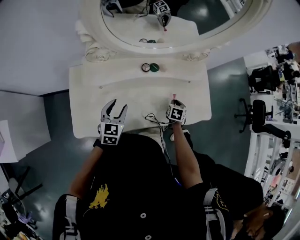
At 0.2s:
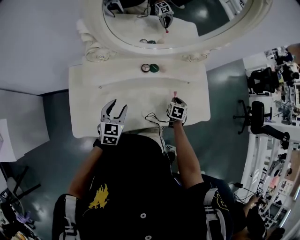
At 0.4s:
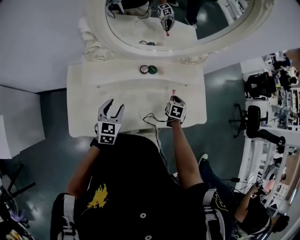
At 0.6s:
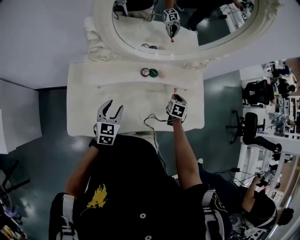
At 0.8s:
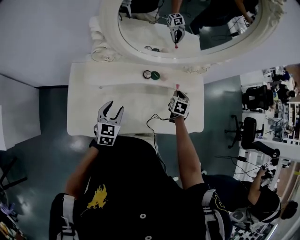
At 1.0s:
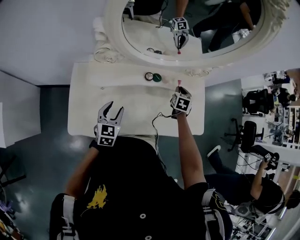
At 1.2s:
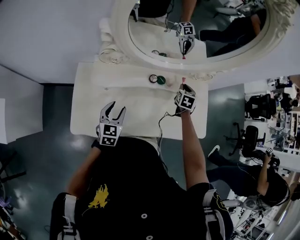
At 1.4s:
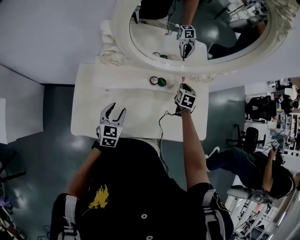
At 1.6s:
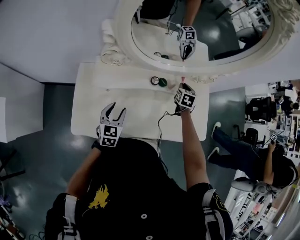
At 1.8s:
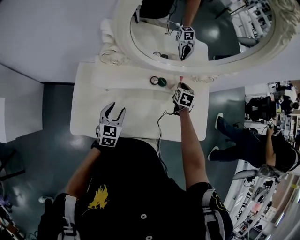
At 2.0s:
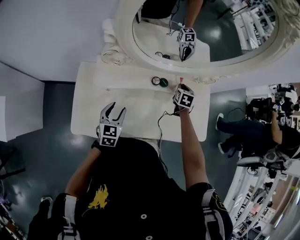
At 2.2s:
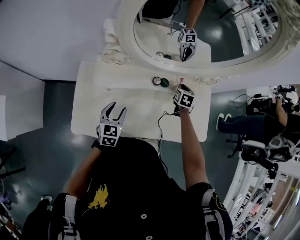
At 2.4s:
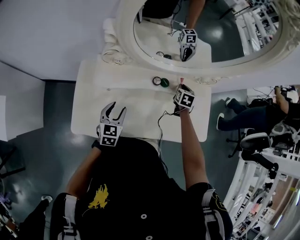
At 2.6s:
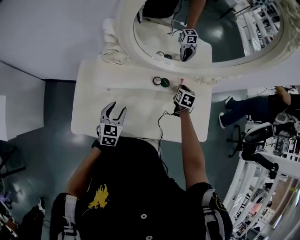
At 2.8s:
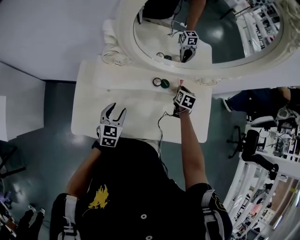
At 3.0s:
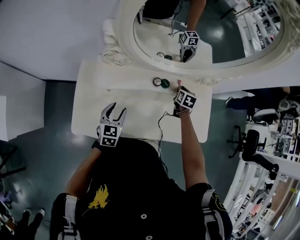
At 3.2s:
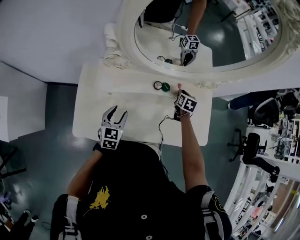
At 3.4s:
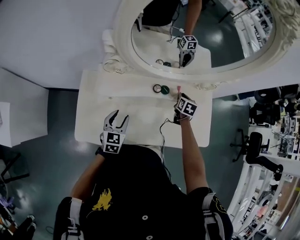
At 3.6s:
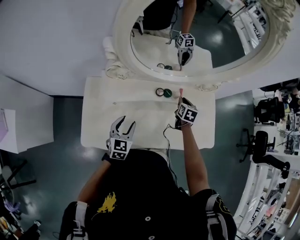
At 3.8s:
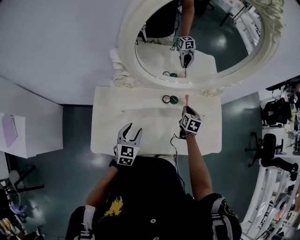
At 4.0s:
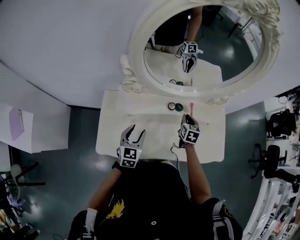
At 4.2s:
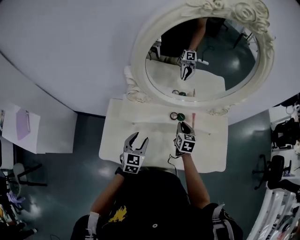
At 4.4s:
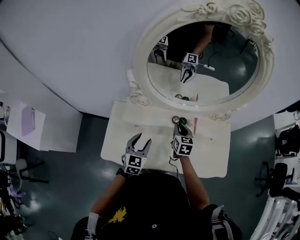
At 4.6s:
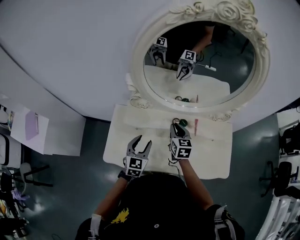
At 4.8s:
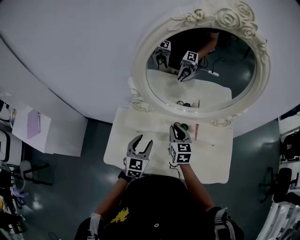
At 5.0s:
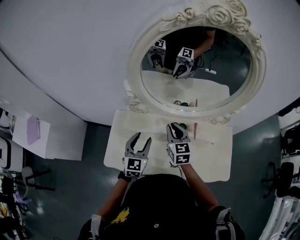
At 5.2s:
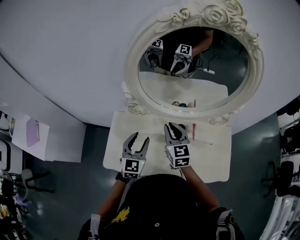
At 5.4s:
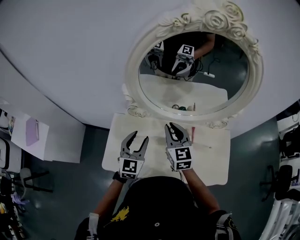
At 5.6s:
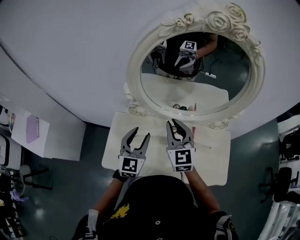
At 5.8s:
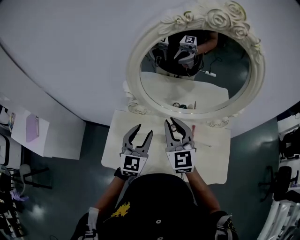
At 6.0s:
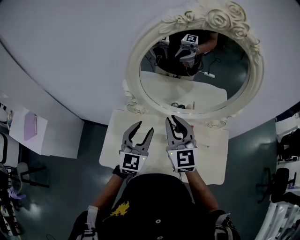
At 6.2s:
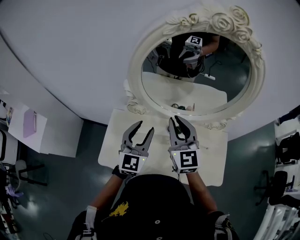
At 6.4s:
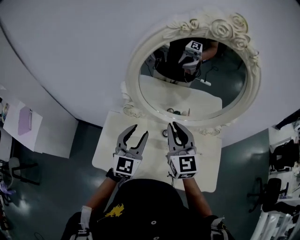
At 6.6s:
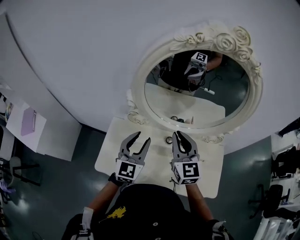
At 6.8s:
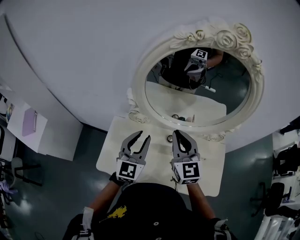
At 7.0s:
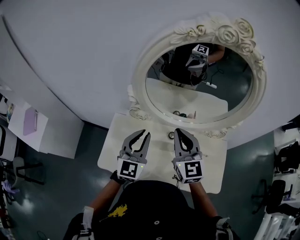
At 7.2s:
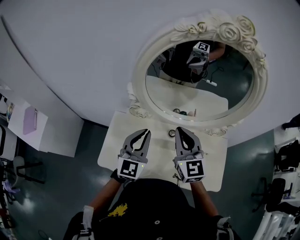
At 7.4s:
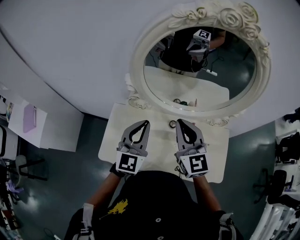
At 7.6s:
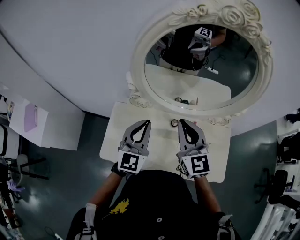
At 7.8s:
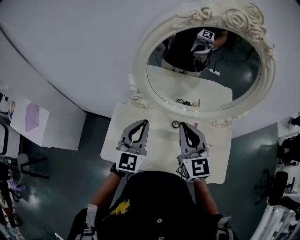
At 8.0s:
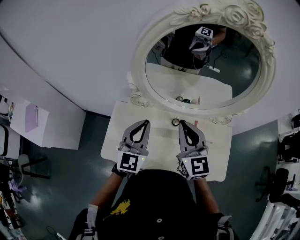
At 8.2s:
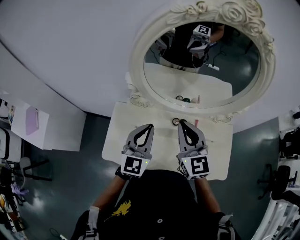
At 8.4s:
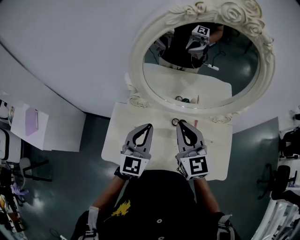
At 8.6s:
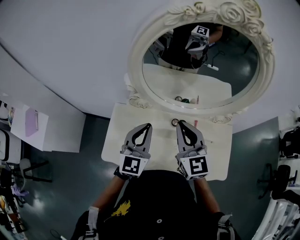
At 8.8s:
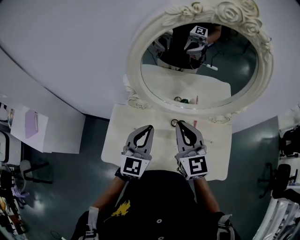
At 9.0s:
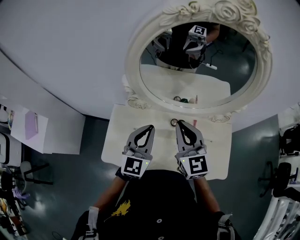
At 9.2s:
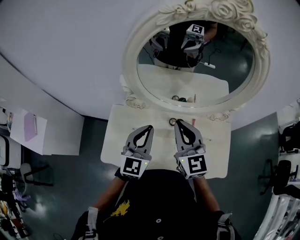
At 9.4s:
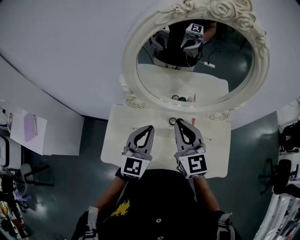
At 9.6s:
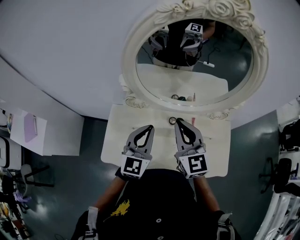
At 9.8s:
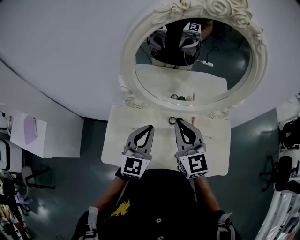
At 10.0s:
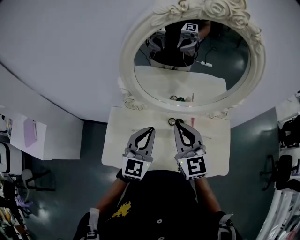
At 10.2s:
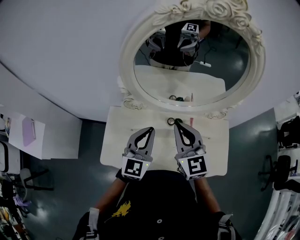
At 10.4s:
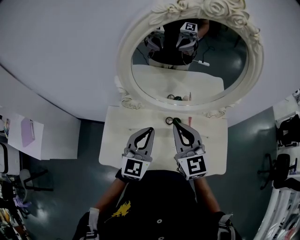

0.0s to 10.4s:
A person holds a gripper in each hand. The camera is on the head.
0.0s to 1.4s: The right gripper is displaced forward, upward and to the left by about 25 cm.
1.4s to 3.0s: The grippers make only small movements.
3.0s to 4.4s: The right gripper shifts some 20 cm to the left, upward and backward, and turns by about 30 degrees; the left gripper travels upward by approximately 10 cm.
4.4s to 6.0s: The two grippers go roughly 20 cm upward. The right gripper changes its angle by approximately 40 degrees.
6.0s to 7.4s: The left gripper closes up.
7.4s to 10.4s: There are only small adjustments of the grippers.

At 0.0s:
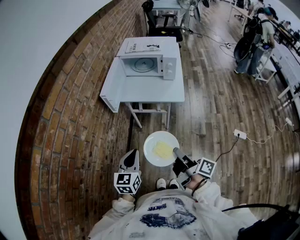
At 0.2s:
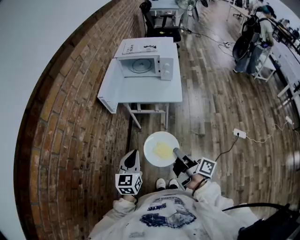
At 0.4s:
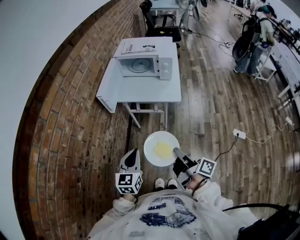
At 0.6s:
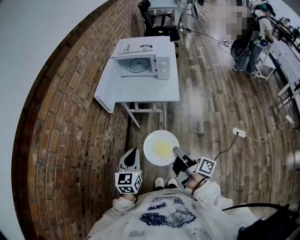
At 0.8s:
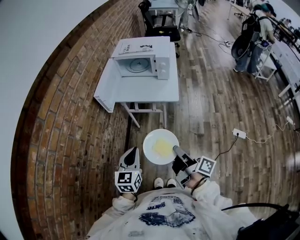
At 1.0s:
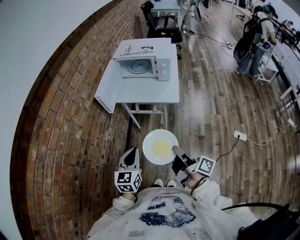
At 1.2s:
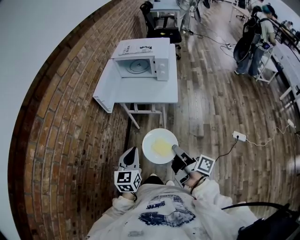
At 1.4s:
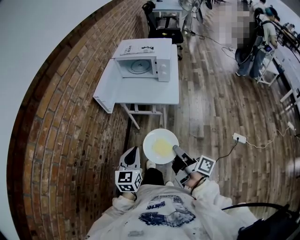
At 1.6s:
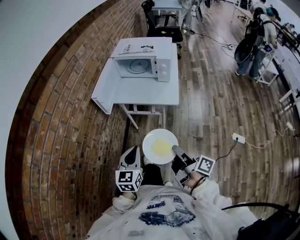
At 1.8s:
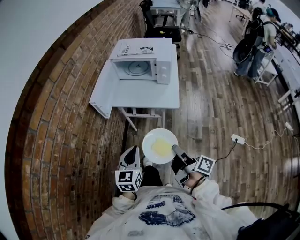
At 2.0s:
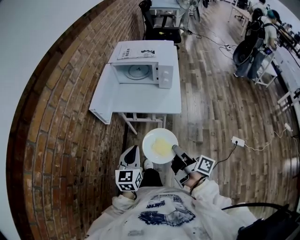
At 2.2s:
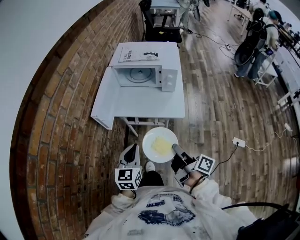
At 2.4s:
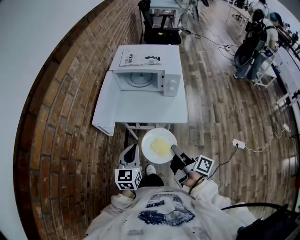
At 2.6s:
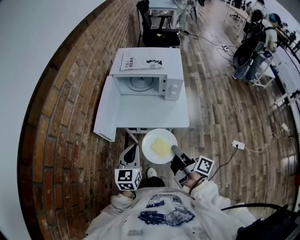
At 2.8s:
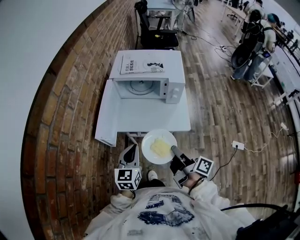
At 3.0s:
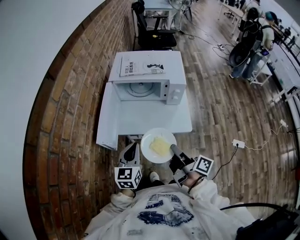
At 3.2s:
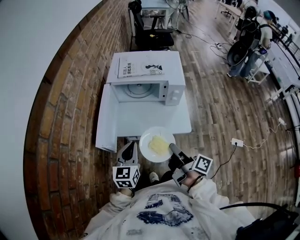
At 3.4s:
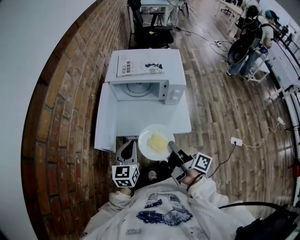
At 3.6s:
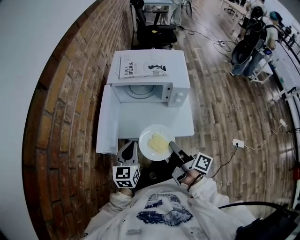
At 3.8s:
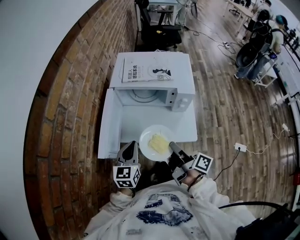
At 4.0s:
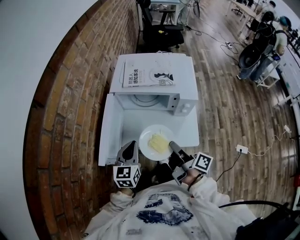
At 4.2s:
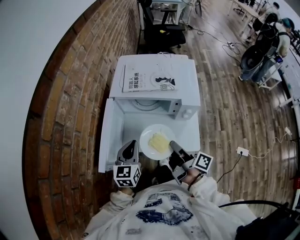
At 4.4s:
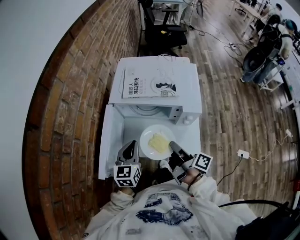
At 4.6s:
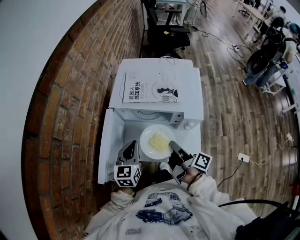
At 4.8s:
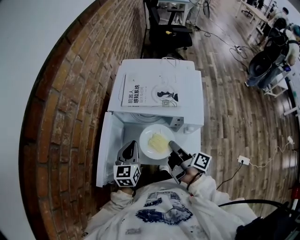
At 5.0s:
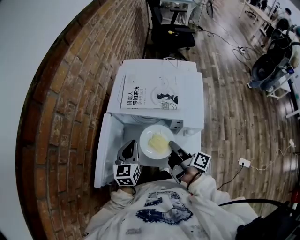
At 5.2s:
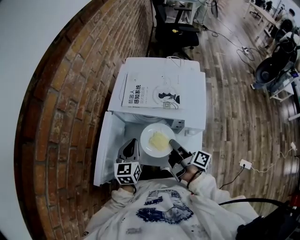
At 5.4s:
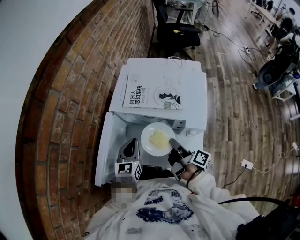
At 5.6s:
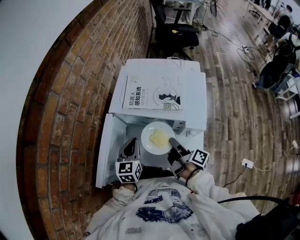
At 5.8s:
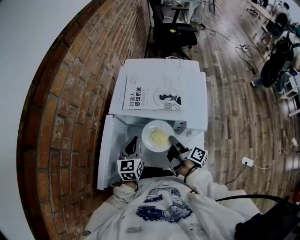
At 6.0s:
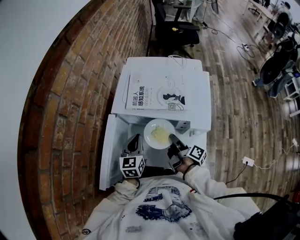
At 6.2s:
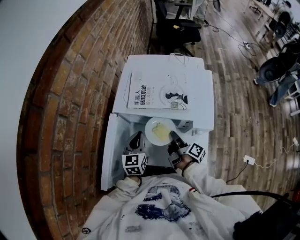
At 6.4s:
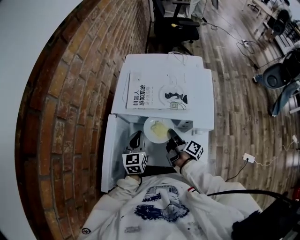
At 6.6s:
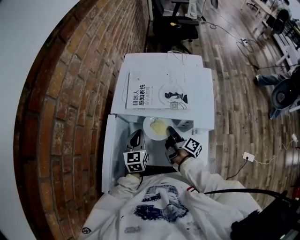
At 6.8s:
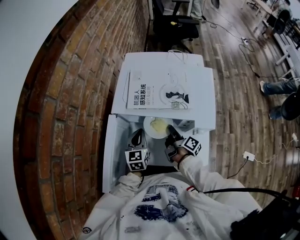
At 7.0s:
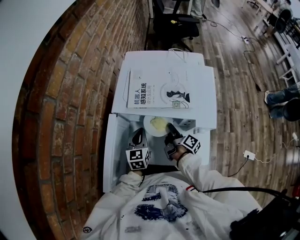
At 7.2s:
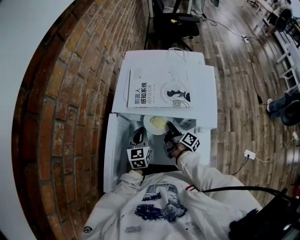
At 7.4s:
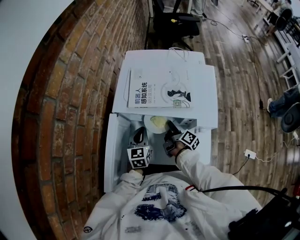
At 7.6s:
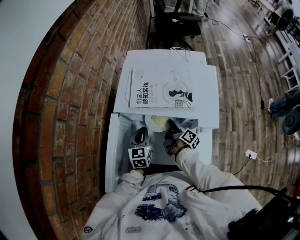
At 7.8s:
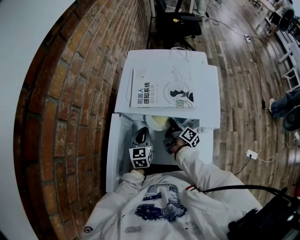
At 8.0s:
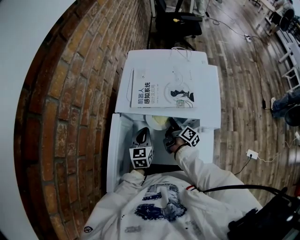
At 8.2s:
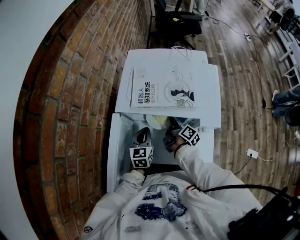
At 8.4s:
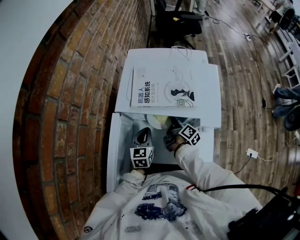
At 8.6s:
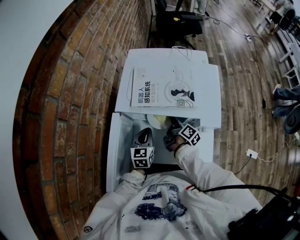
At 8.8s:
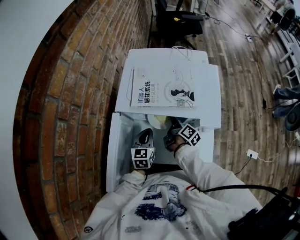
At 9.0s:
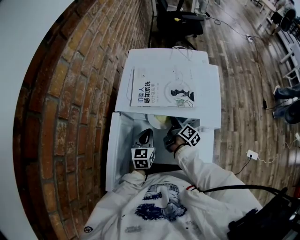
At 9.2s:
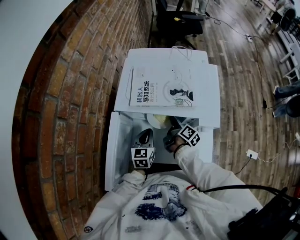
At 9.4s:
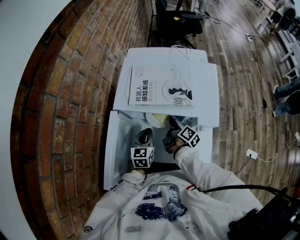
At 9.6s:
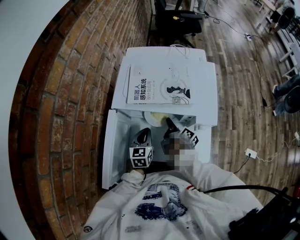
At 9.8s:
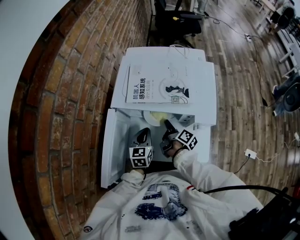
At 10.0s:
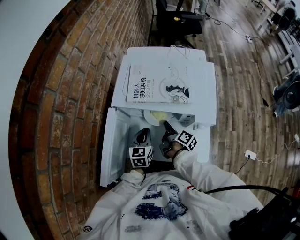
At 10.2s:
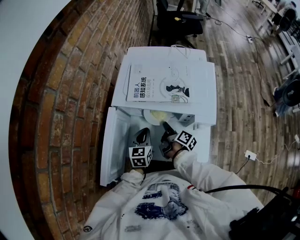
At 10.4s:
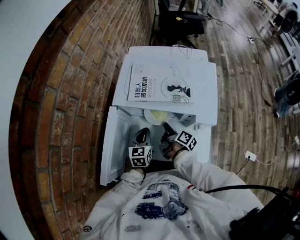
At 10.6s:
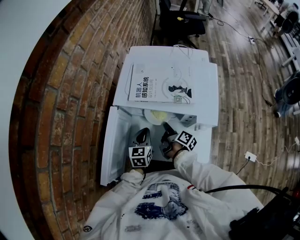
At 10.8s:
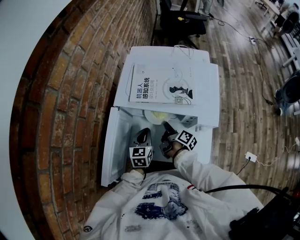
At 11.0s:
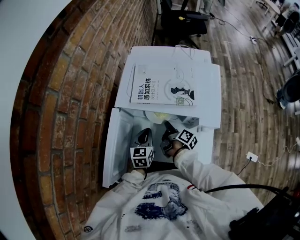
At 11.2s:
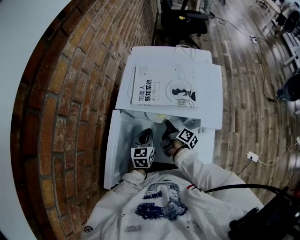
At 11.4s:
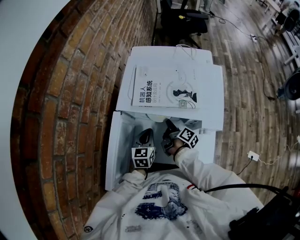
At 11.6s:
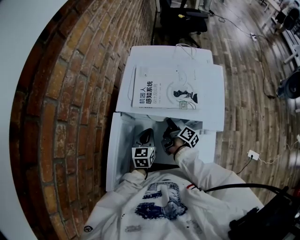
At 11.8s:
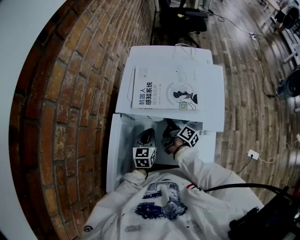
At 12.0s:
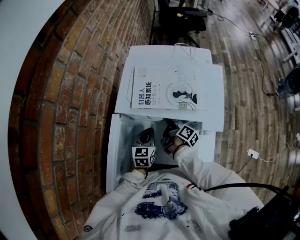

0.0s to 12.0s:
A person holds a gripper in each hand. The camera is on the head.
0.0s to 1.6s: The left gripper shifts by roughly 10 cm.
1.6s to 3.0s: The left gripper ends up some 30 cm from where it was.
3.0s to 4.4s: The left gripper moves about 20 cm.
4.4s to 6.0s: The left gripper shifts by roughly 10 cm.
6.0s to 7.6s: The left gripper moves downward, approximately 5 cm.

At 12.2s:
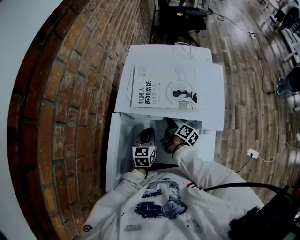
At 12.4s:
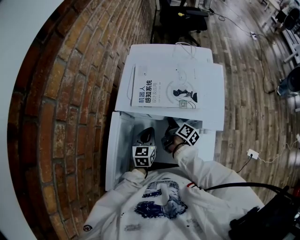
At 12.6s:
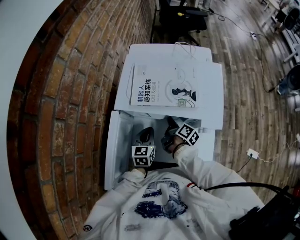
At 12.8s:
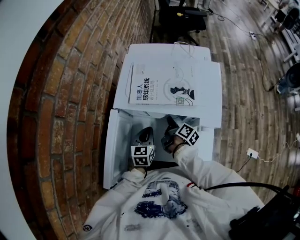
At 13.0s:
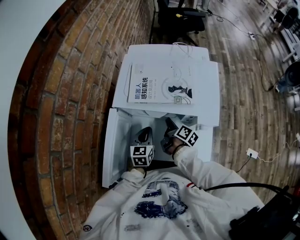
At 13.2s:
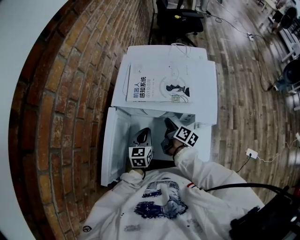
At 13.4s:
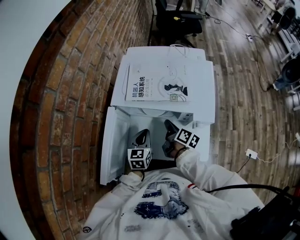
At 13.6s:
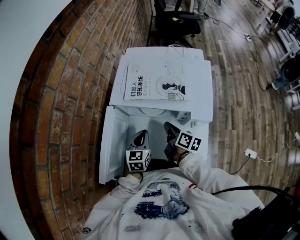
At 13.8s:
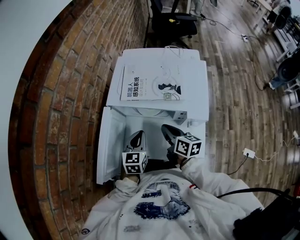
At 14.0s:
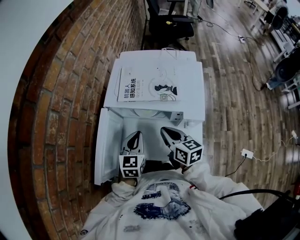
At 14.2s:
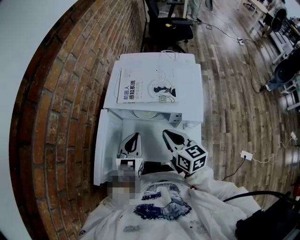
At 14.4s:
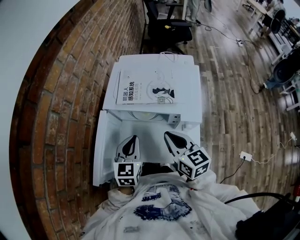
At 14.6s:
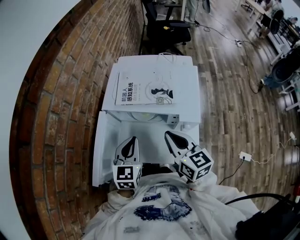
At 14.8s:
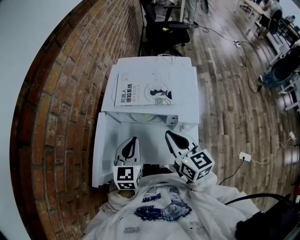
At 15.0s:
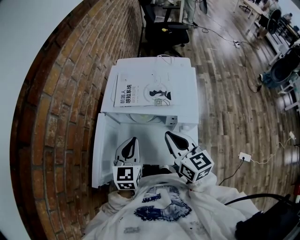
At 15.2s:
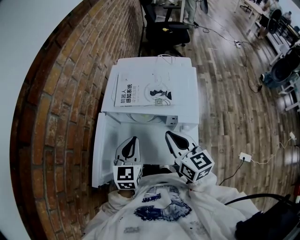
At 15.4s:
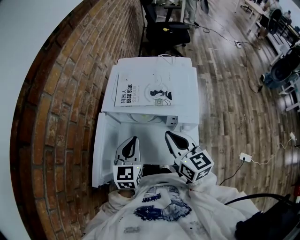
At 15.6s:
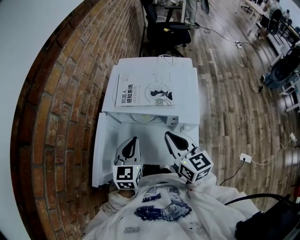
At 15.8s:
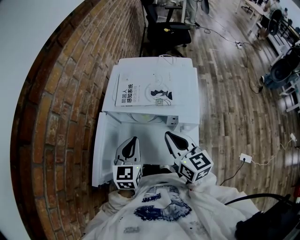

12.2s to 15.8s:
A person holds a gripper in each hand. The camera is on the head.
12.2s to 14.0s: The left gripper shifts approximately 10 cm upward.
14.0s to 15.8s: The left gripper heads upward, covering some 5 cm.
